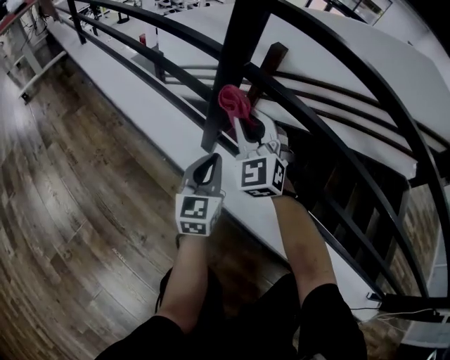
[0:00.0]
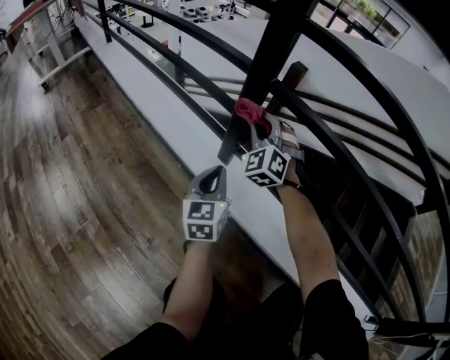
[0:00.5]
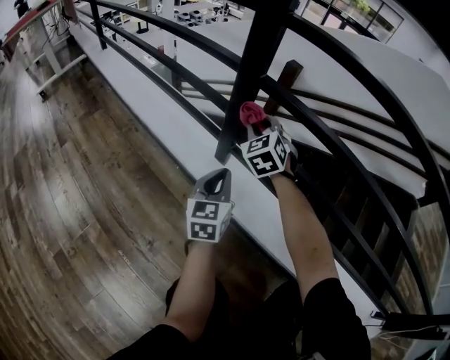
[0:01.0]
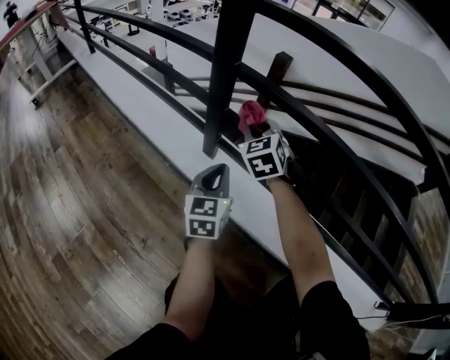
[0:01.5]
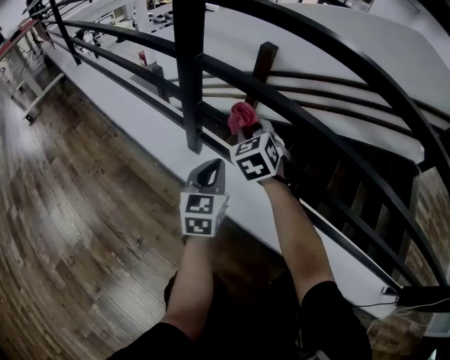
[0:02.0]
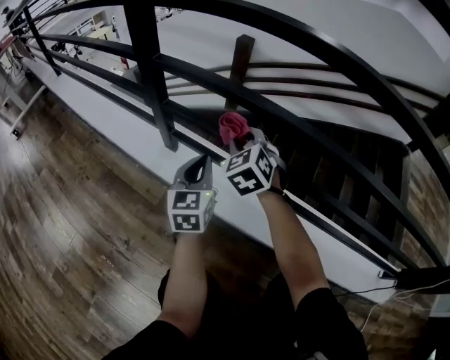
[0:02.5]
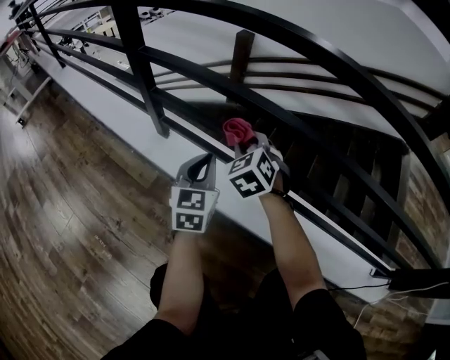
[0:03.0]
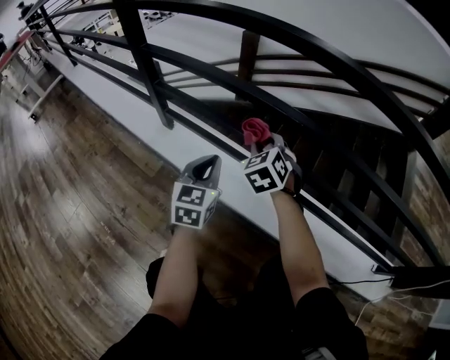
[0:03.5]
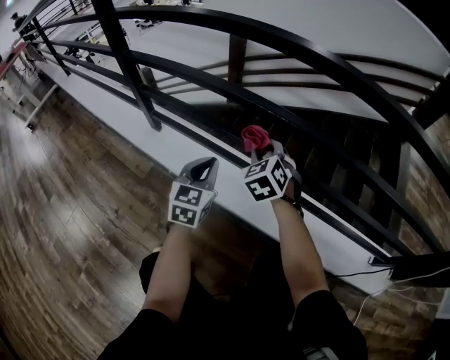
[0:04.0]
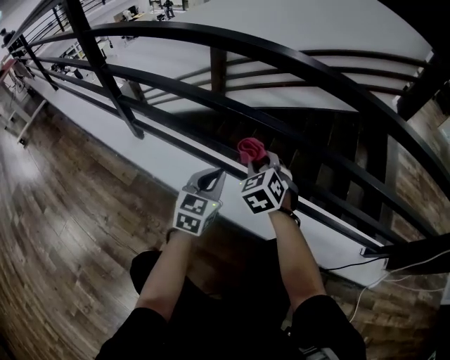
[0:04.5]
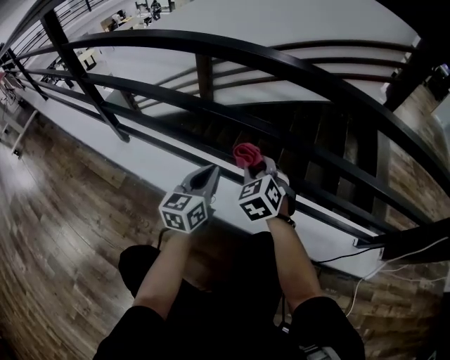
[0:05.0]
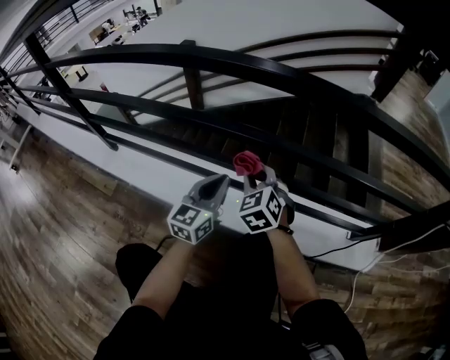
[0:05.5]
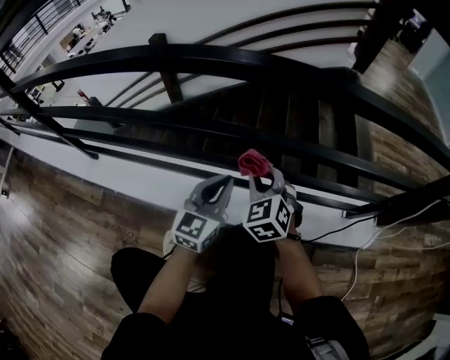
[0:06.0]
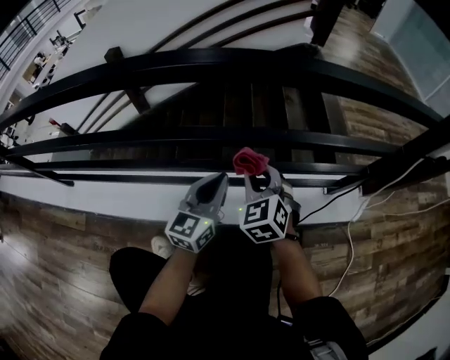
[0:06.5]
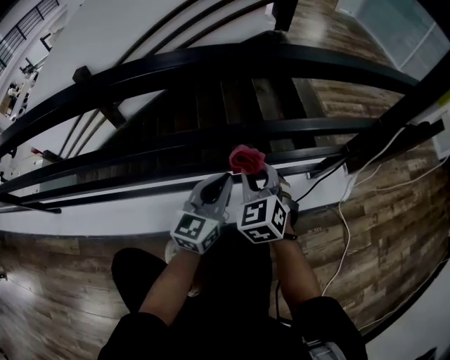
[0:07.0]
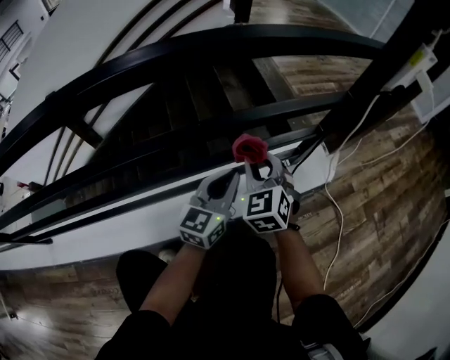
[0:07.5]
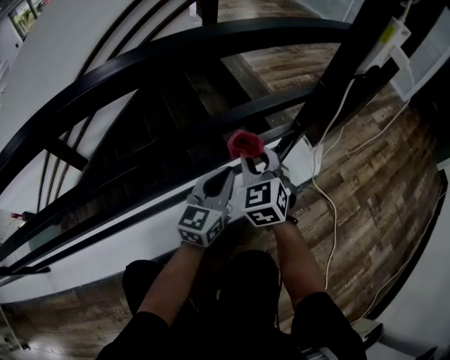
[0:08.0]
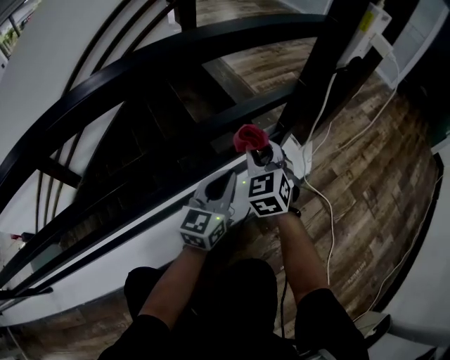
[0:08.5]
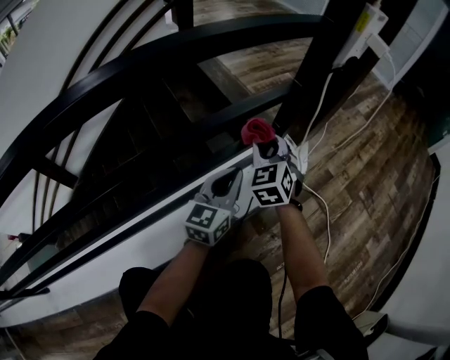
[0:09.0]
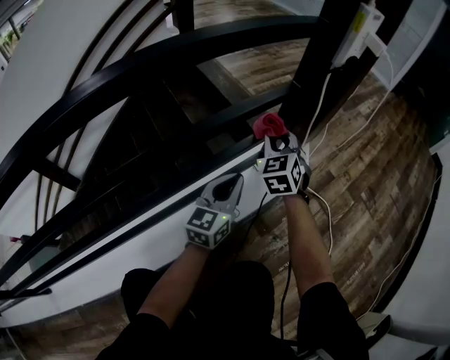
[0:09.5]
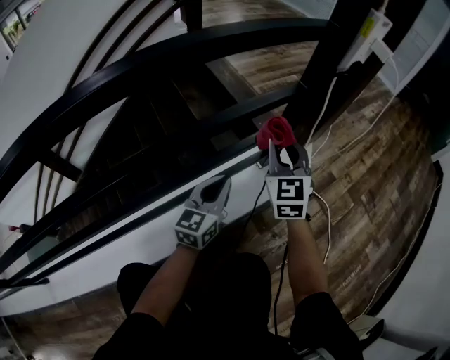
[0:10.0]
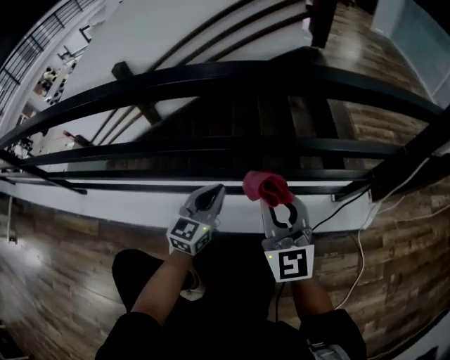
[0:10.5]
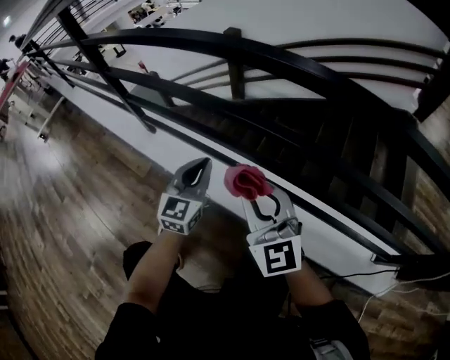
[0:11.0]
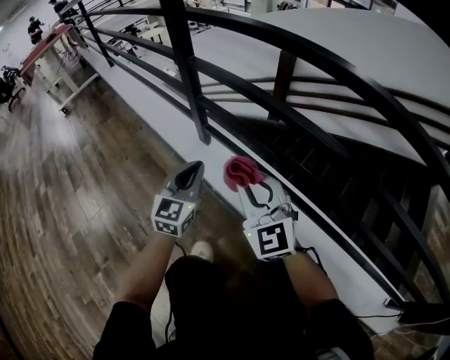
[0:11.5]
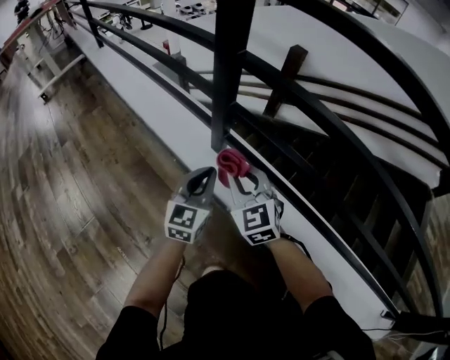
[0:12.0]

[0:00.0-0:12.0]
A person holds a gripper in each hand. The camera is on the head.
0:00.0 to 0:02.0: The right gripper shifts about 15 cm to the right and downward, and turns by some 30 degrees. The left gripper moves to the right, about 5 cm.
0:02.0 to 0:04.0: The two grippers go about 25 cm to the right and backward.
0:04.0 to 0:06.0: The two grippers go approximately 30 cm to the right. The left gripper swivels roughly 30 degrees.
0:06.0 to 0:08.0: The right gripper ends up approximately 30 cm from where it was, and changes its angle by about 40 degrees; the left gripper shifts by some 30 cm, and changes its angle by roughly 40 degrees.
0:08.0 to 0:10.0: The right gripper travels to the right and forward by roughly 10 cm.
0:10.0 to 0:12.0: The pair of grippers is taken roughly 1 m. The left gripper turns by about 80 degrees. Meanwhile the right gripper swivels about 90 degrees.

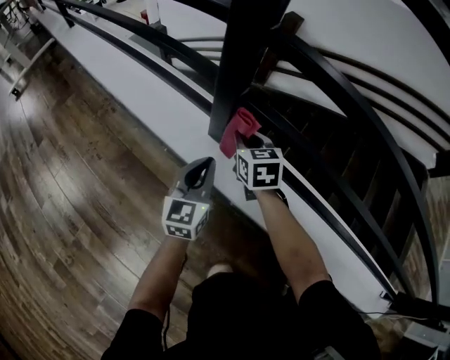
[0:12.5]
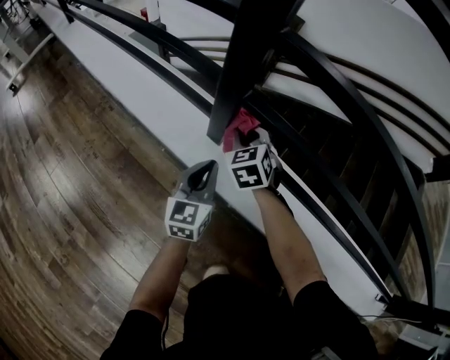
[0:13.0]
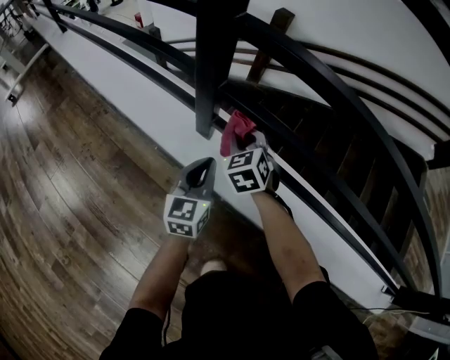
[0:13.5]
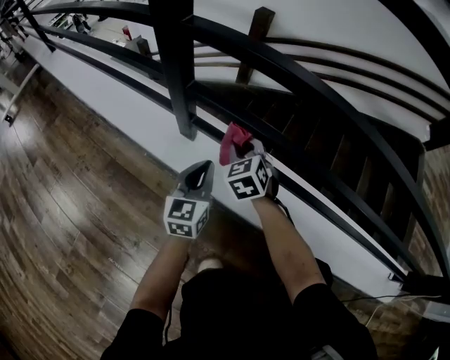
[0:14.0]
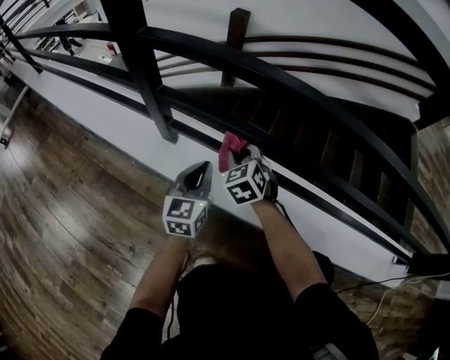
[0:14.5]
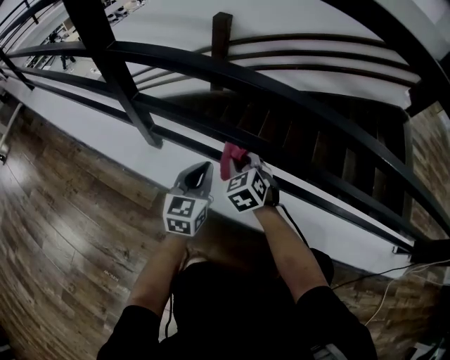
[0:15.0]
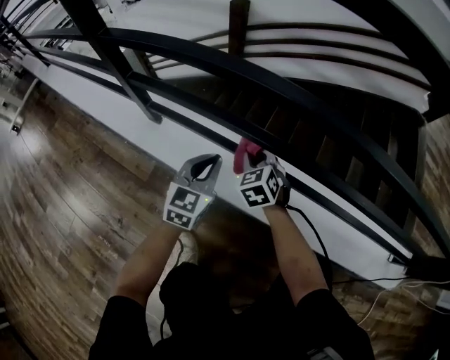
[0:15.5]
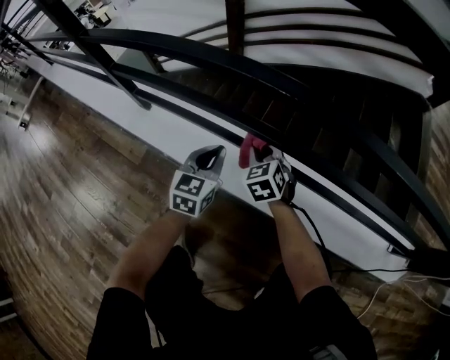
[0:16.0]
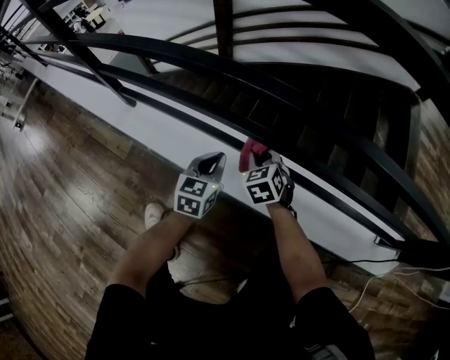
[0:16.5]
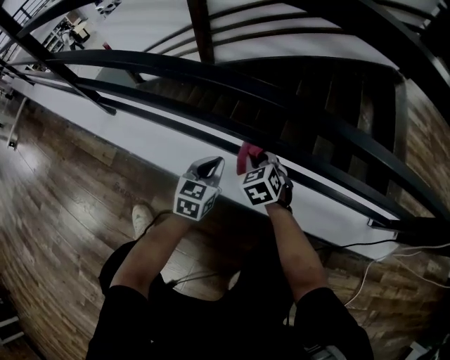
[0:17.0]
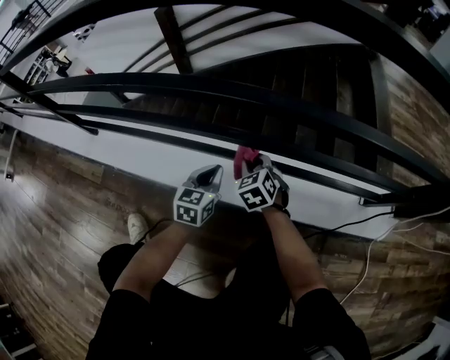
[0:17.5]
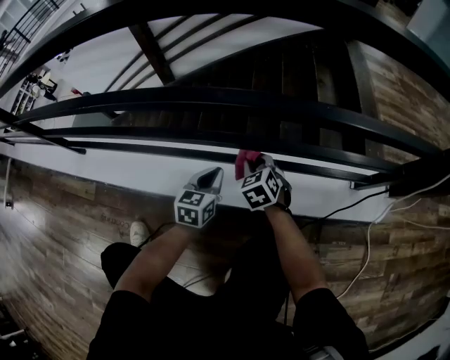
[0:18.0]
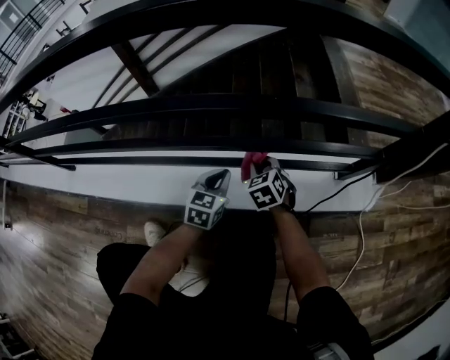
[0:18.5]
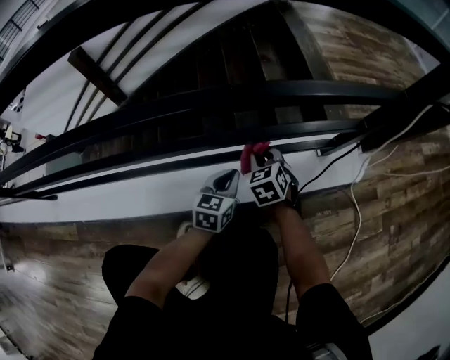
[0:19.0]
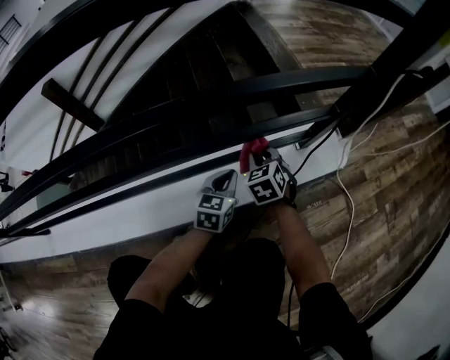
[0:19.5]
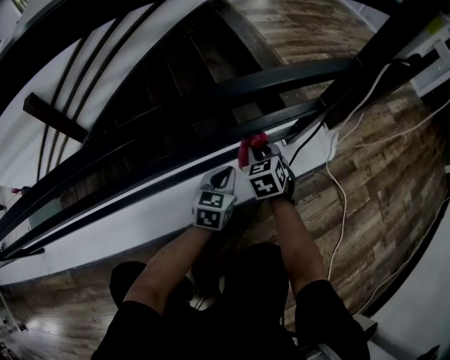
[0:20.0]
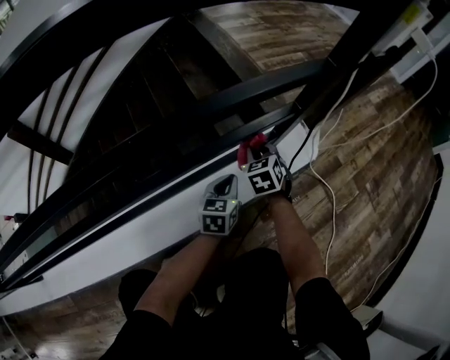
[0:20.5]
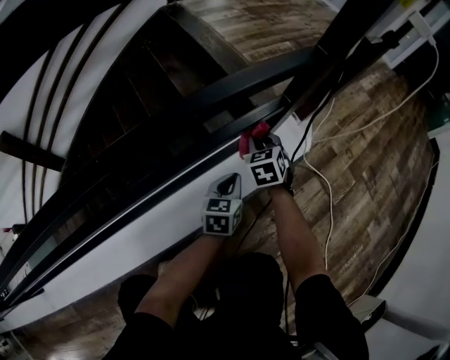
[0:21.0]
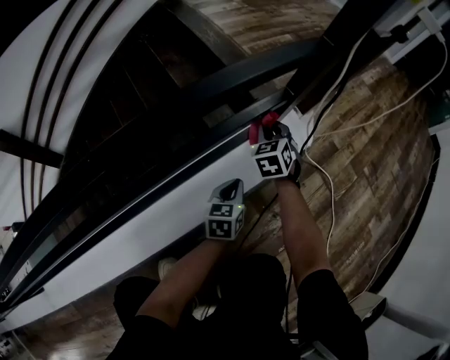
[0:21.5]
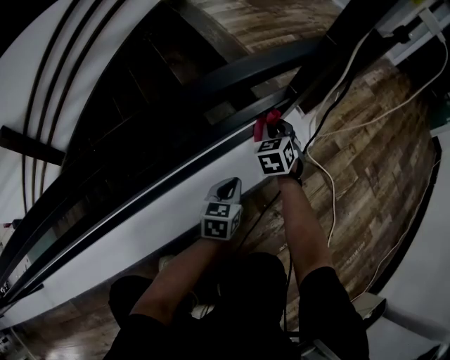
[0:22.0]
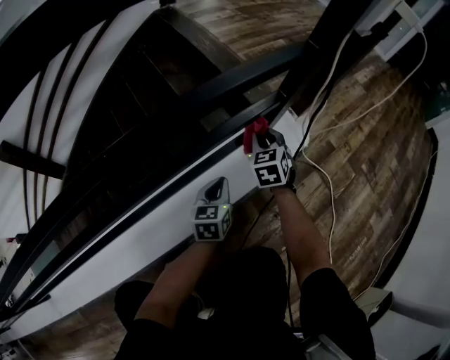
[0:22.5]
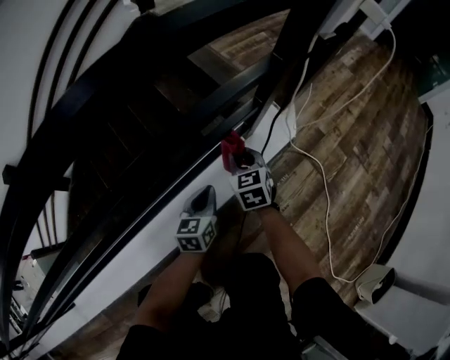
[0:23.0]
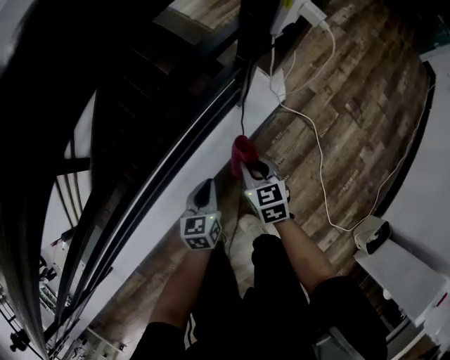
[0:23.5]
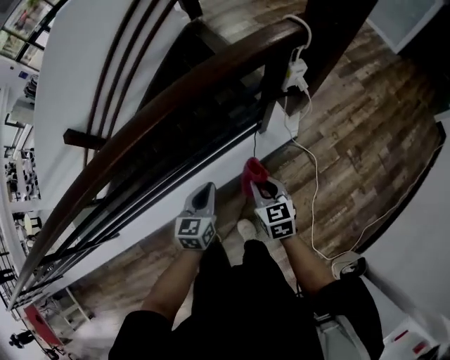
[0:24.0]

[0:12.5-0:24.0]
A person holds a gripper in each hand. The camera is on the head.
0:12.5 to 0:14.5: The left gripper goes approximately 15 cm to the right. The right gripper shifts about 15 cm to the right and backward, and changes its angle by about 20 degrees.
0:14.5 to 0:16.5: The grippers both shift to the right by some 30 cm.
0:16.5 to 0:18.5: The grippers both shift to the right by roughly 30 cm. The left gripper rotates about 30 degrees, while the right gripper swivels about 20 degrees.
0:18.5 to 0:20.0: The right gripper shifts by some 20 cm, and turns by approximately 30 degrees. Meanwhile the left gripper changes place by about 20 cm, and changes its angle by some 20 degrees.
0:20.0 to 0:22.0: The right gripper travels to the right and forward by roughly 15 cm, and turns by approximately 20 degrees. The left gripper heads to the right, covering about 10 cm.
0:22.0 to 0:24.0: Both grippers travel together upward, approximately 40 cm. The right gripper changes its angle by roughly 40 degrees.

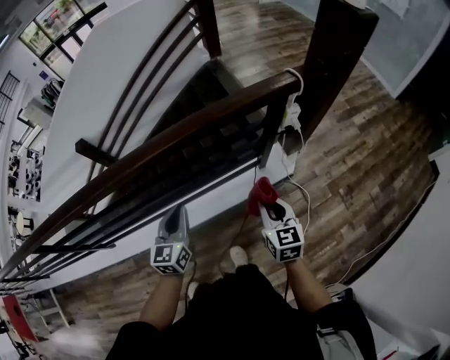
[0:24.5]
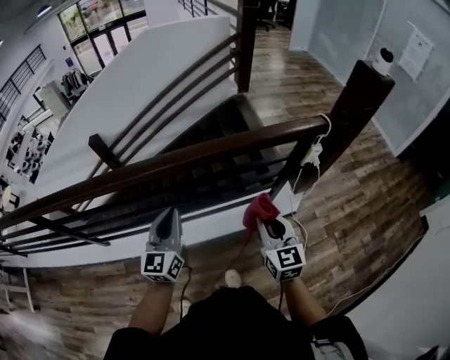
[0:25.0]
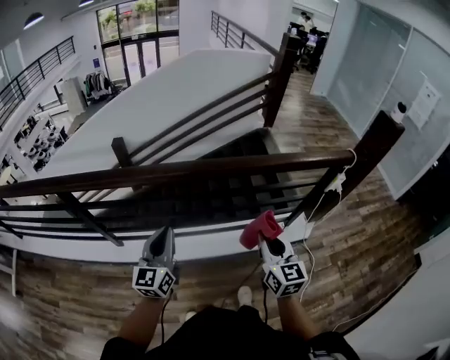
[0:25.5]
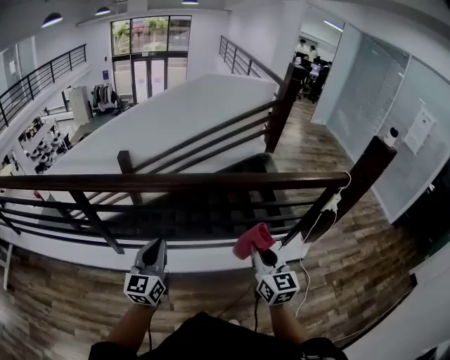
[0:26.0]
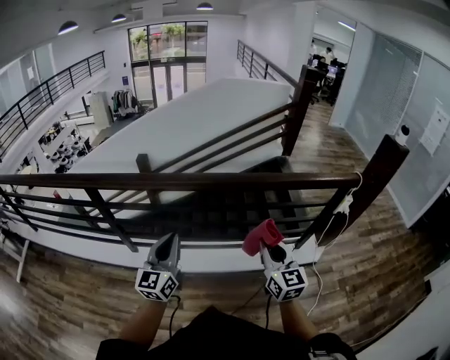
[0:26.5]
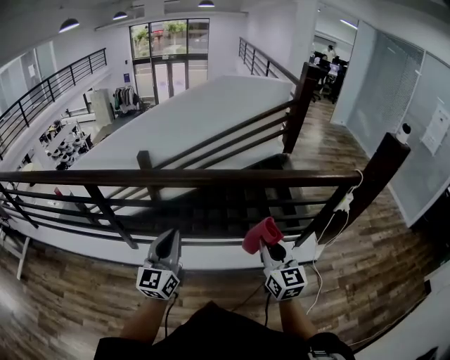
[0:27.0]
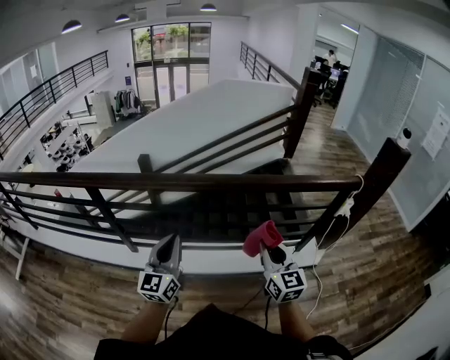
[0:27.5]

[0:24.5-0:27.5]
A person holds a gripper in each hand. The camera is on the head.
0:24.5 to 0:26.0: The left gripper moves to the left, roughly 35 cm, and swivels about 20 degrees. The right gripper shifts roughly 35 cm to the left and upward, and swivels about 20 degrees.
0:26.0 to 0:27.5: The left gripper ends up some 5 cm from where it was.
